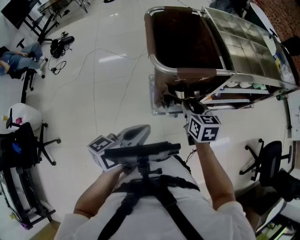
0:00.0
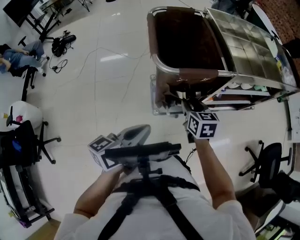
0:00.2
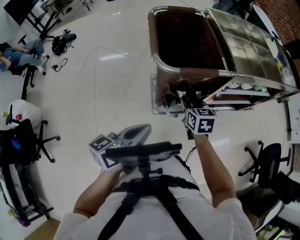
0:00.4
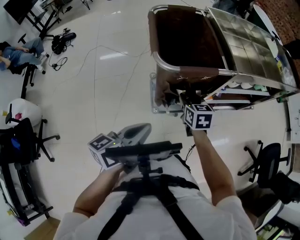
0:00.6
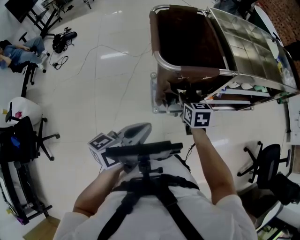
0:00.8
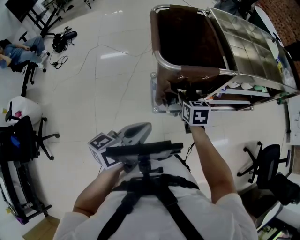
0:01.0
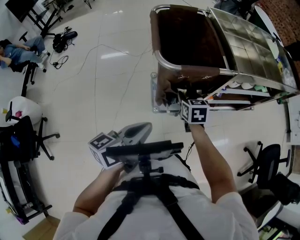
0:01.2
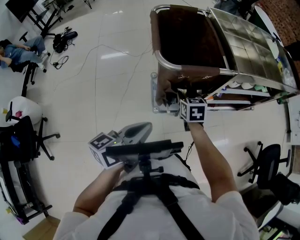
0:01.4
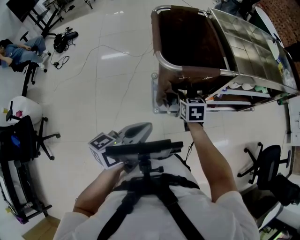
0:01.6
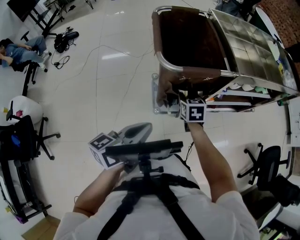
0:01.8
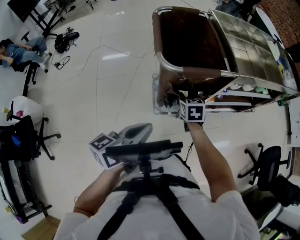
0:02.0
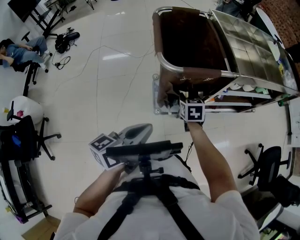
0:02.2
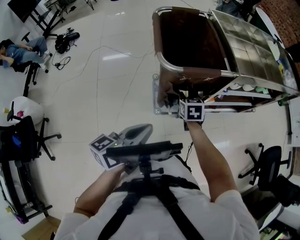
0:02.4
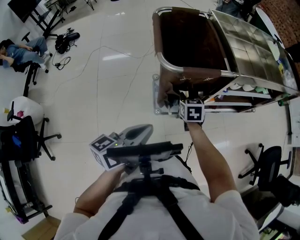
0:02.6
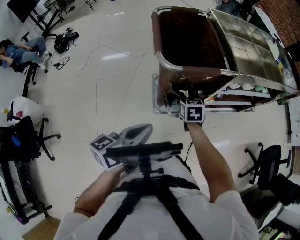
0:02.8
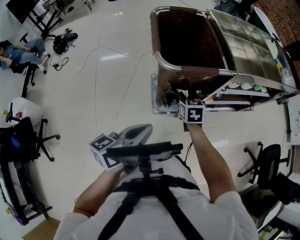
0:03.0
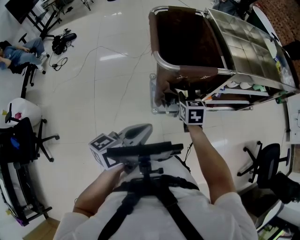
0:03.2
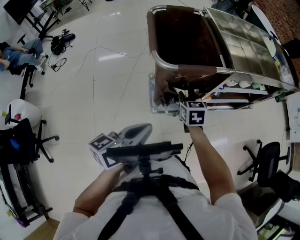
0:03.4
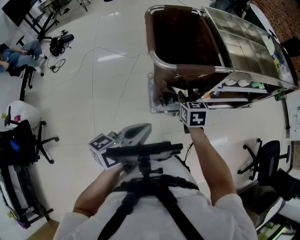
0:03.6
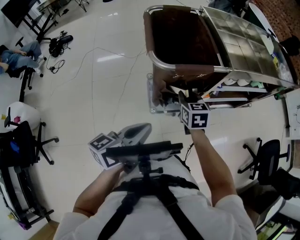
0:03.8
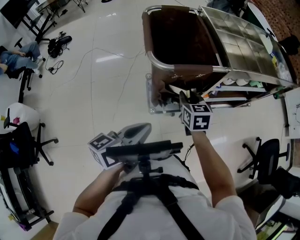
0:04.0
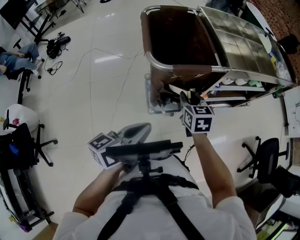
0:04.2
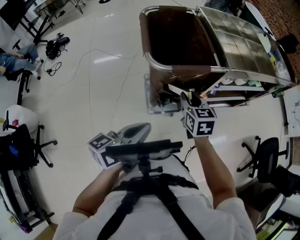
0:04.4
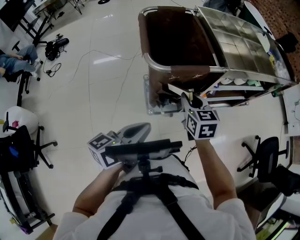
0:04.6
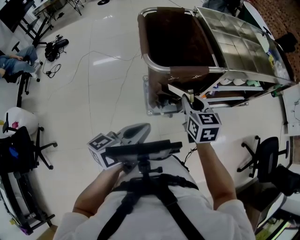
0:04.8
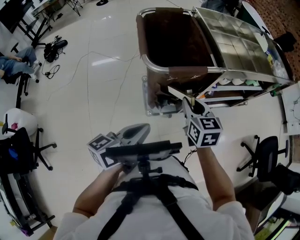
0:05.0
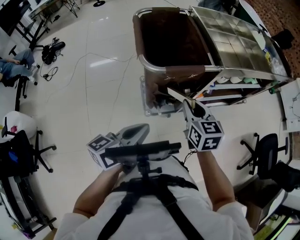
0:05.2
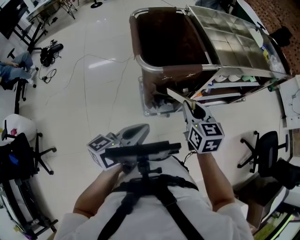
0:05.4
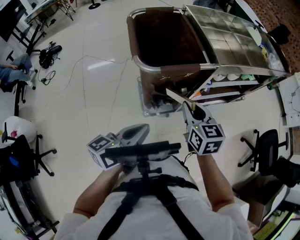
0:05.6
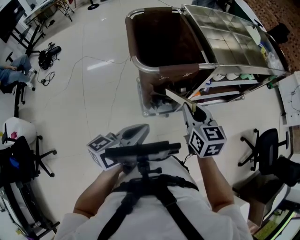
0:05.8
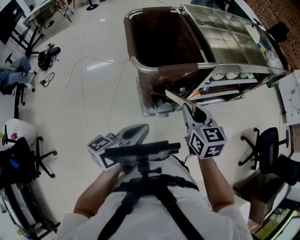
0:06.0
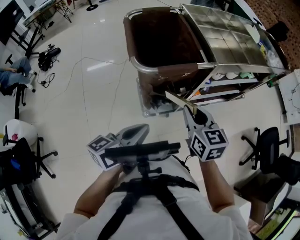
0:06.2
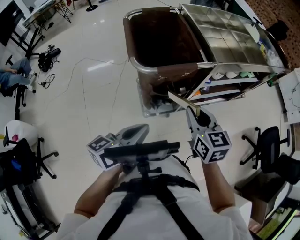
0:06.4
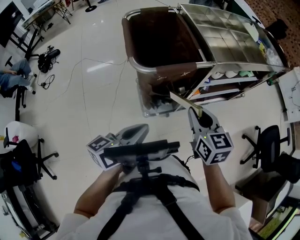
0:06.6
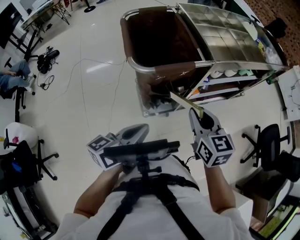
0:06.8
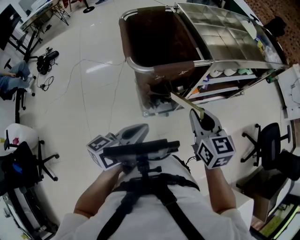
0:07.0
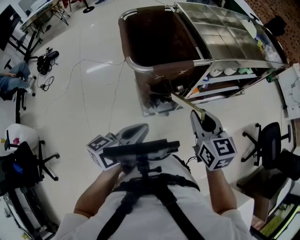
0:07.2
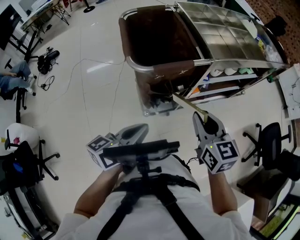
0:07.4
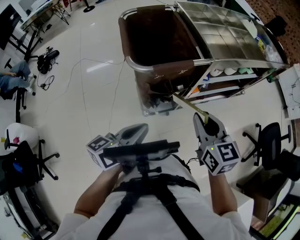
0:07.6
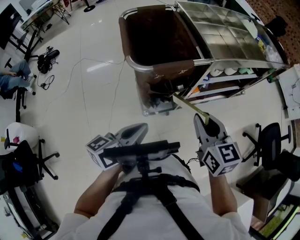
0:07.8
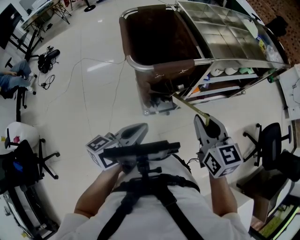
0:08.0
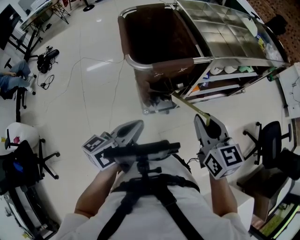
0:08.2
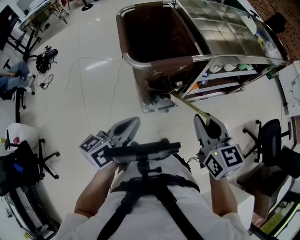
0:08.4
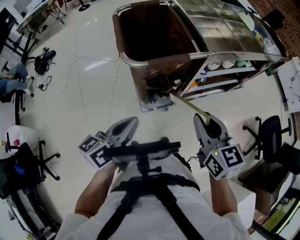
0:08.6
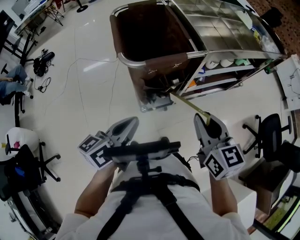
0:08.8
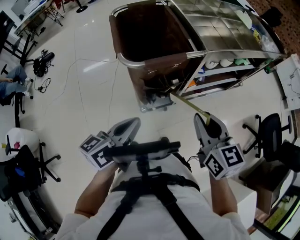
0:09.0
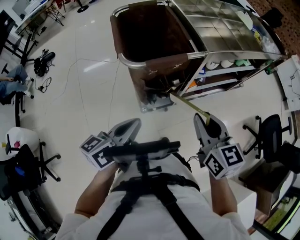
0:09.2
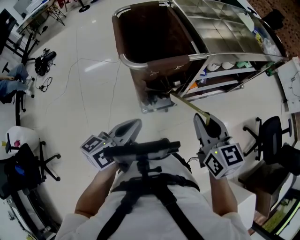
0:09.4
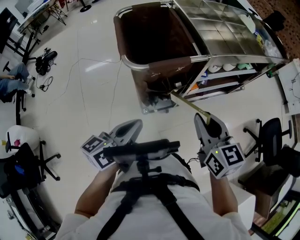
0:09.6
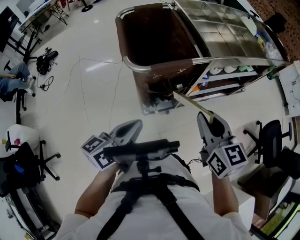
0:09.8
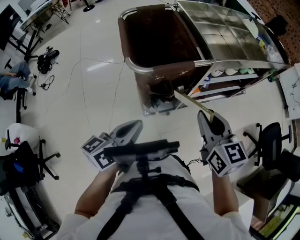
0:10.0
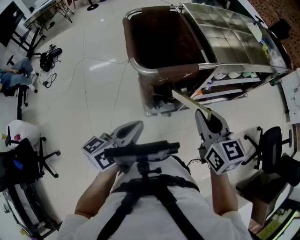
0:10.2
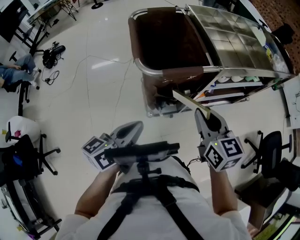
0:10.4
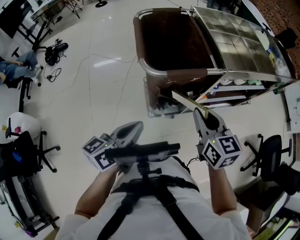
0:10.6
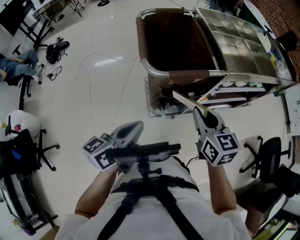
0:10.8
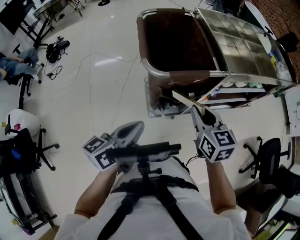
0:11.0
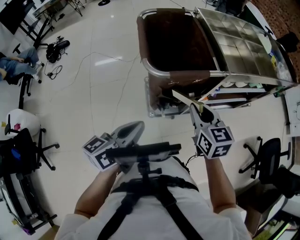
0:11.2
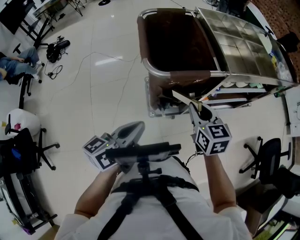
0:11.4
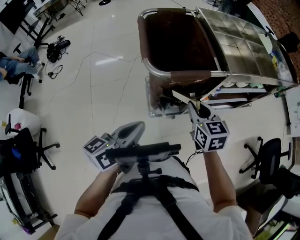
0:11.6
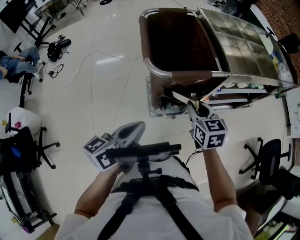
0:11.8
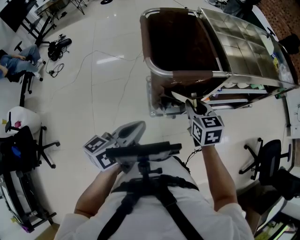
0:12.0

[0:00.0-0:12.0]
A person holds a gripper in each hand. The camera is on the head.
0:00.0 to 0:01.6: The right gripper travels downward by roughly 5 cm.
0:01.6 to 0:03.0: The grippers stay close to where they were, moving slightly.
0:03.0 to 0:04.4: The right gripper travels upward by some 10 cm.
0:04.4 to 0:06.0: The right gripper shifts roughly 10 cm upward and backward.
0:06.0 to 0:07.6: The right gripper shifts by approximately 5 cm.
0:07.6 to 0:09.0: There are only small adjustments of the grippers.
0:09.0 to 0:10.4: The right gripper goes roughly 5 cm forward.
0:10.4 to 0:12.0: The right gripper shifts approximately 10 cm downward and forward.

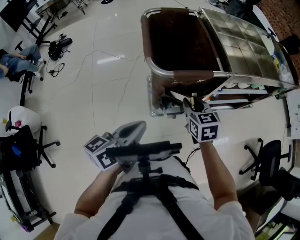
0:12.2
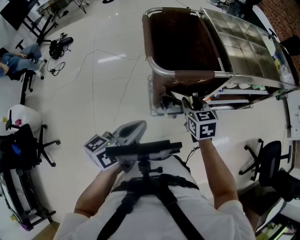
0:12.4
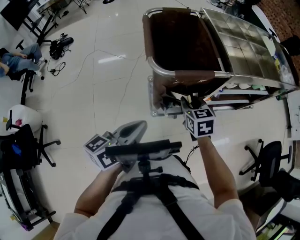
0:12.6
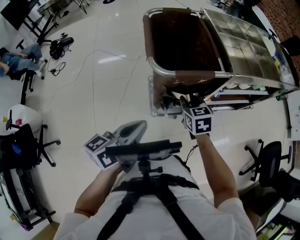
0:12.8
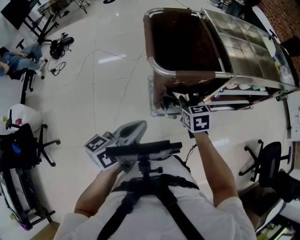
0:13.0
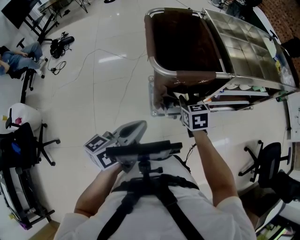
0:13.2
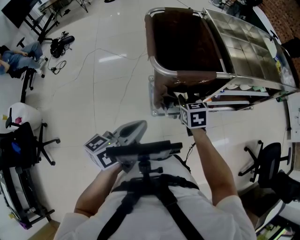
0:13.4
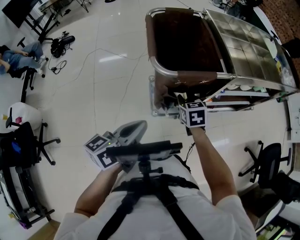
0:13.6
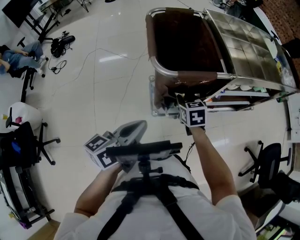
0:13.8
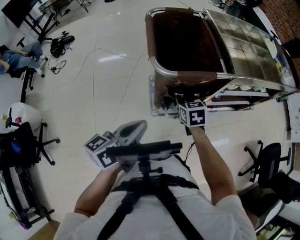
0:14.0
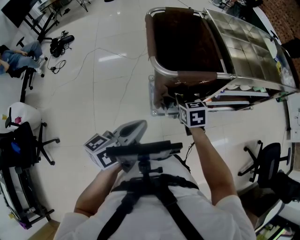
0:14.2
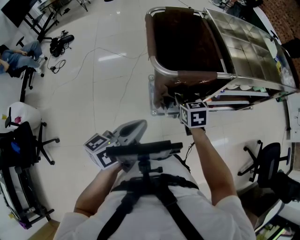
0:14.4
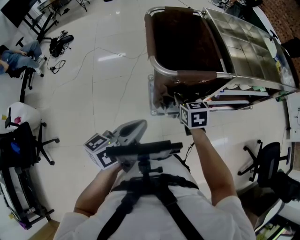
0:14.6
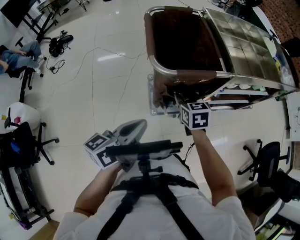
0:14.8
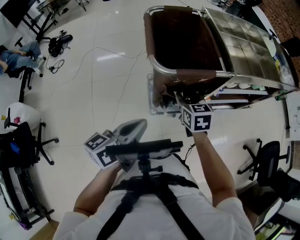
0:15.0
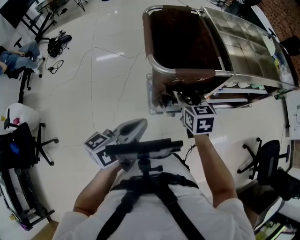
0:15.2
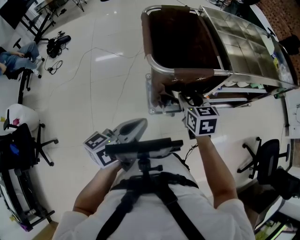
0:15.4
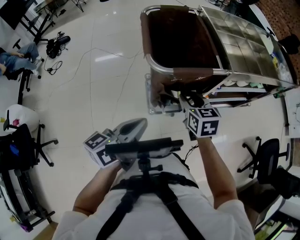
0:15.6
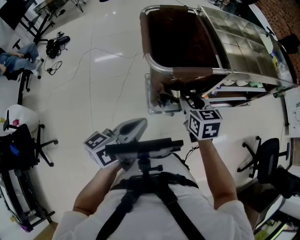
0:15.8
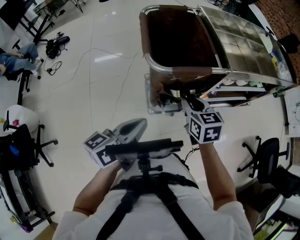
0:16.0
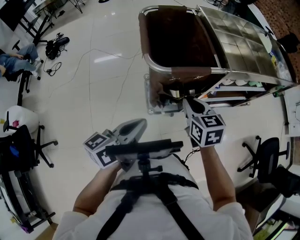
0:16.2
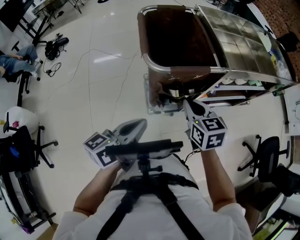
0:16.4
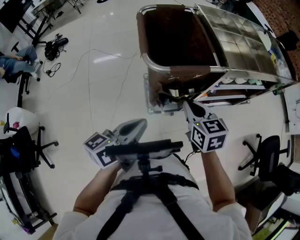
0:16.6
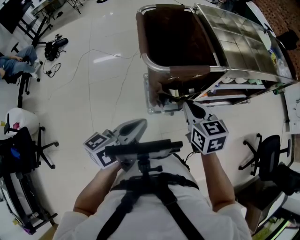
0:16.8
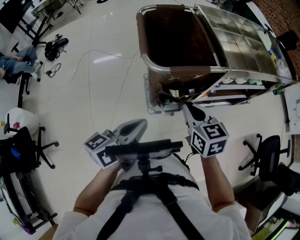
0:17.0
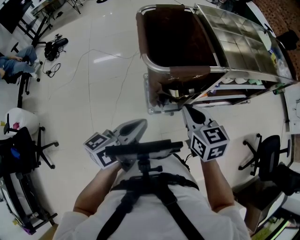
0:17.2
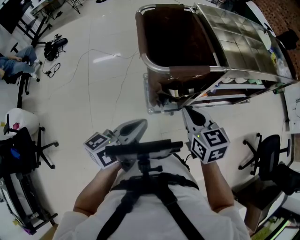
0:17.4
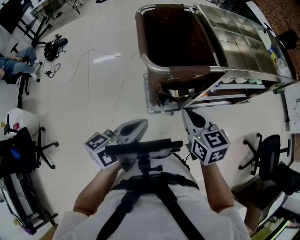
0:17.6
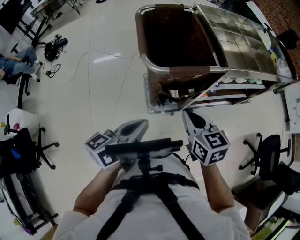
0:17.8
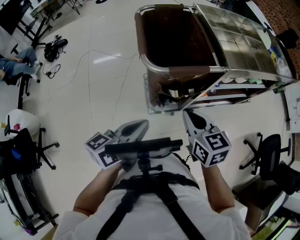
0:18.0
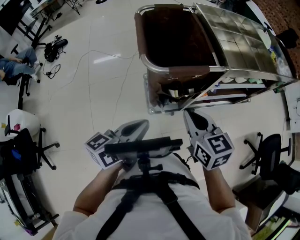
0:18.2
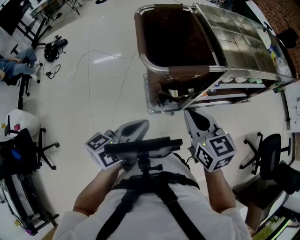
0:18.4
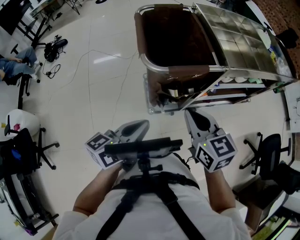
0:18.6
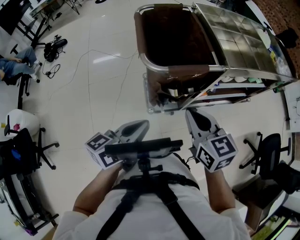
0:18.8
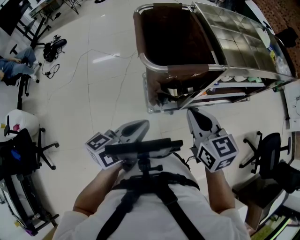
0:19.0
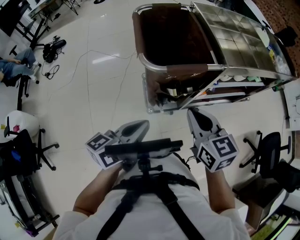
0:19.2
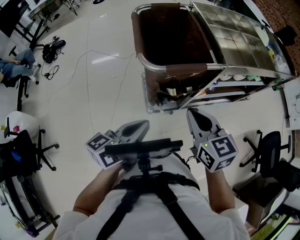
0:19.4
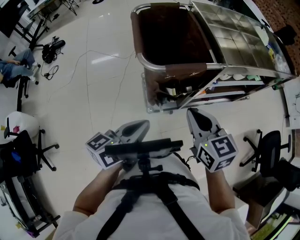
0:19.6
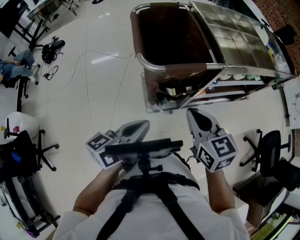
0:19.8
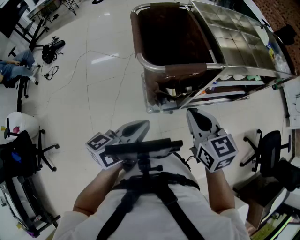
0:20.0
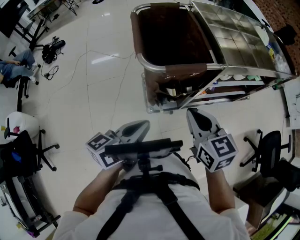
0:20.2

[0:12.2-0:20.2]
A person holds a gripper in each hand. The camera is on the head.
0:12.2 to 0:13.8: The right gripper moves downward, approximately 5 cm.
0:13.8 to 0:15.4: The right gripper goes some 5 cm upward.
0:15.4 to 0:17.0: The right gripper heads backward, covering roughly 5 cm, and closes up.
0:17.0 to 0:18.6: The right gripper ends up approximately 5 cm from where it was.
0:18.6 to 0:20.2: There are only small adjustments of the grippers.

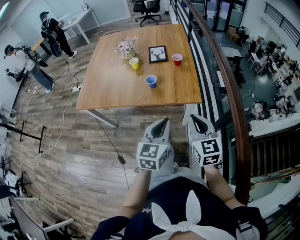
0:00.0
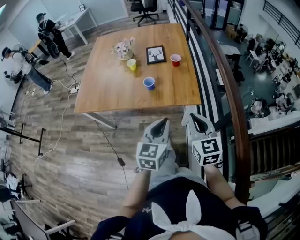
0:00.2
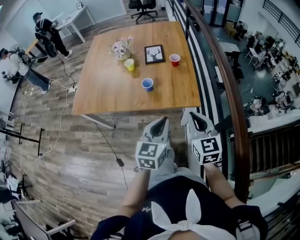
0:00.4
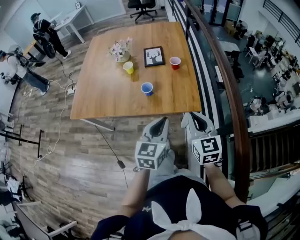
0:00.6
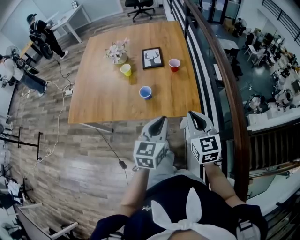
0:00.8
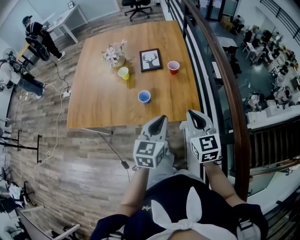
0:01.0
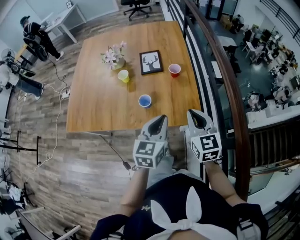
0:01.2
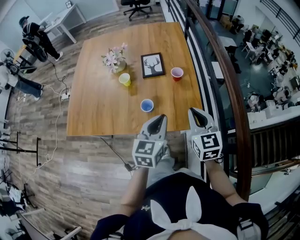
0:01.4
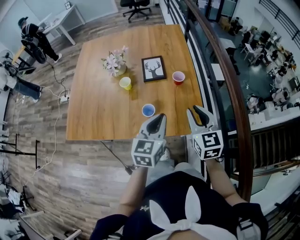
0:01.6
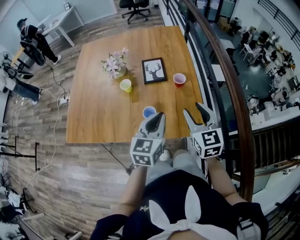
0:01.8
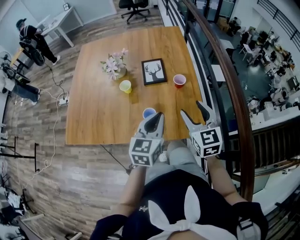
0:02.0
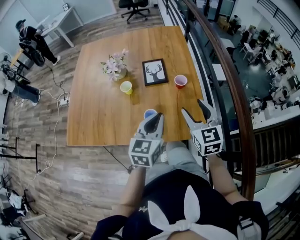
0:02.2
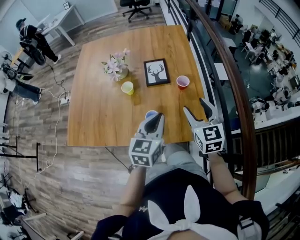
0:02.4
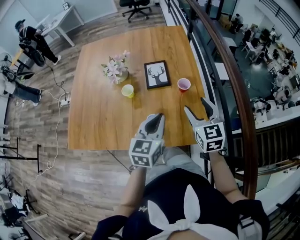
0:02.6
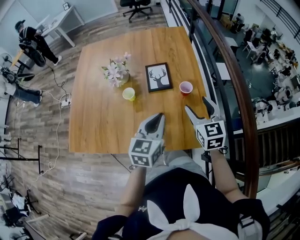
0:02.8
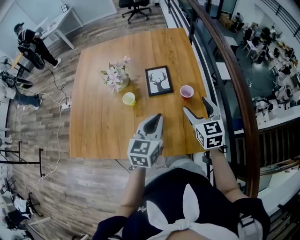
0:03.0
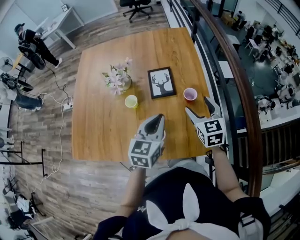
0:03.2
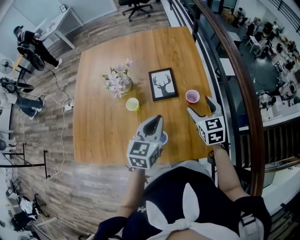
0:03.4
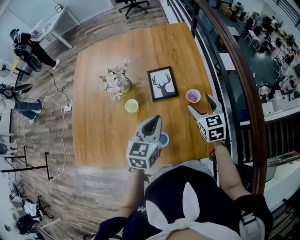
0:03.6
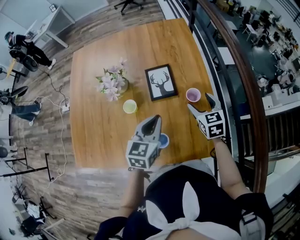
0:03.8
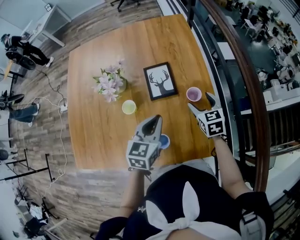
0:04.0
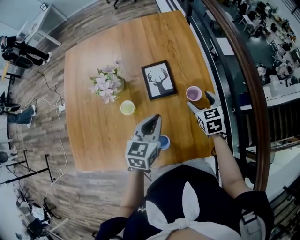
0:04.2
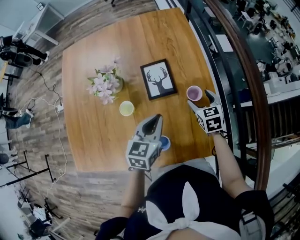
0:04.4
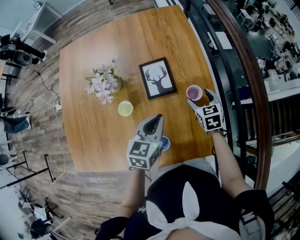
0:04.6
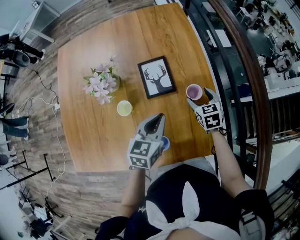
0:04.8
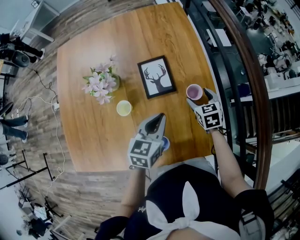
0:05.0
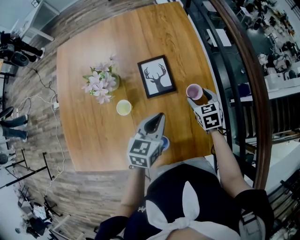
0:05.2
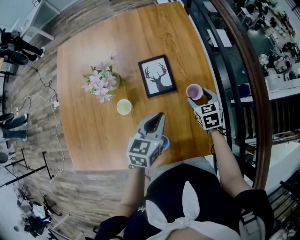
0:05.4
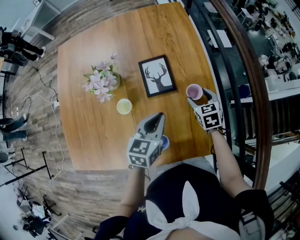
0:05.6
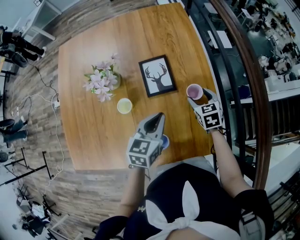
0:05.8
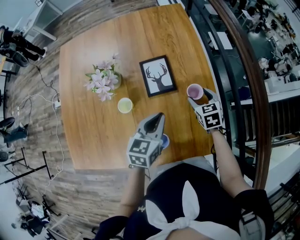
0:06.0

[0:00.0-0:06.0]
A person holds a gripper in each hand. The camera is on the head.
0:00.0 to 0:01.6: The grippers both shift forward by about 30 cm.
0:01.6 to 0:03.0: The left gripper moves forward and to the left, approximately 15 cm; the right gripper heads forward, covering roughly 15 cm, and opens its fingers.
0:03.0 to 0:04.4: The left gripper shifts roughly 15 cm forward and downward. The right gripper is displaced downward and forward by approximately 20 cm, and swivels approximately 20 degrees.
0:04.4 to 0:06.0: The grippers stay close to where they were, moving slightly.
